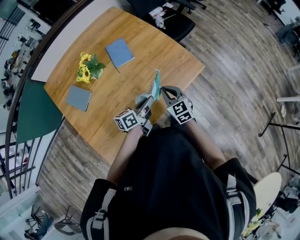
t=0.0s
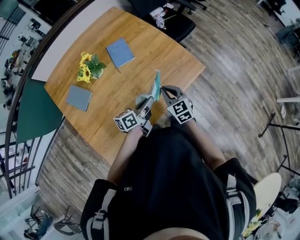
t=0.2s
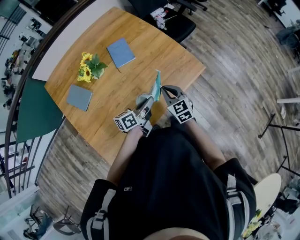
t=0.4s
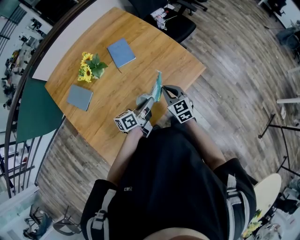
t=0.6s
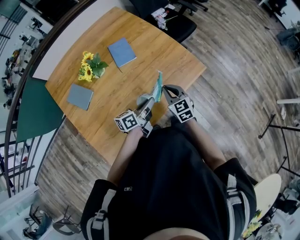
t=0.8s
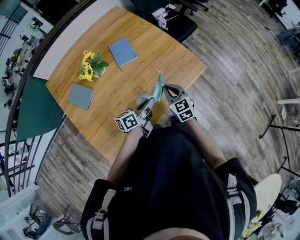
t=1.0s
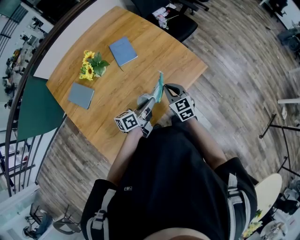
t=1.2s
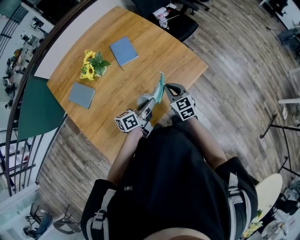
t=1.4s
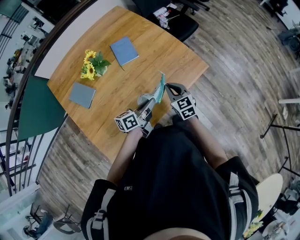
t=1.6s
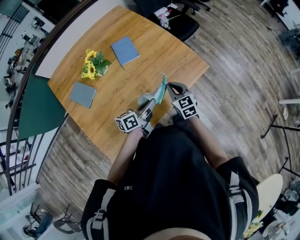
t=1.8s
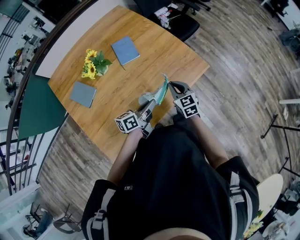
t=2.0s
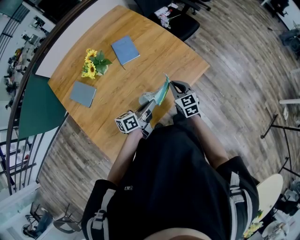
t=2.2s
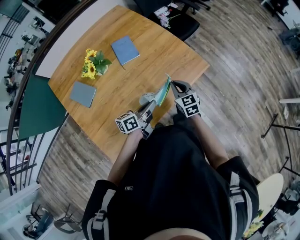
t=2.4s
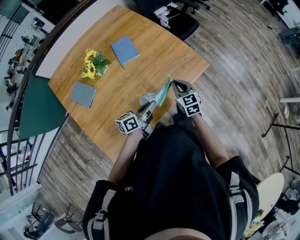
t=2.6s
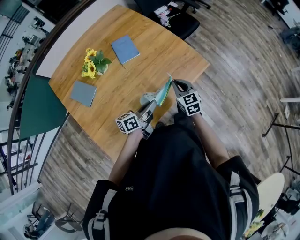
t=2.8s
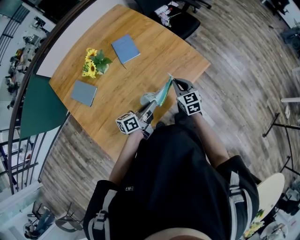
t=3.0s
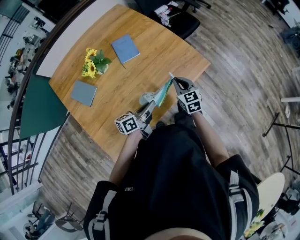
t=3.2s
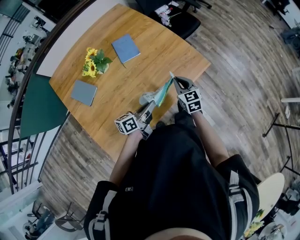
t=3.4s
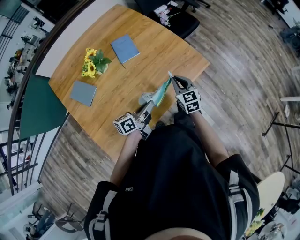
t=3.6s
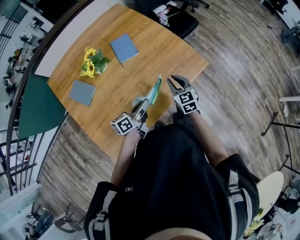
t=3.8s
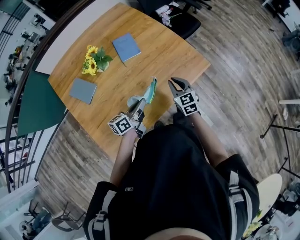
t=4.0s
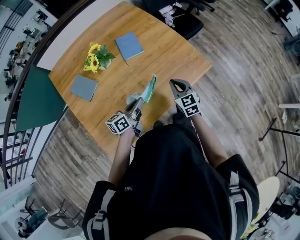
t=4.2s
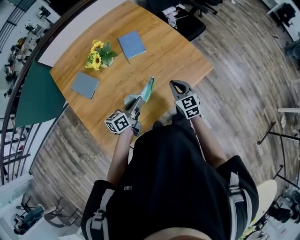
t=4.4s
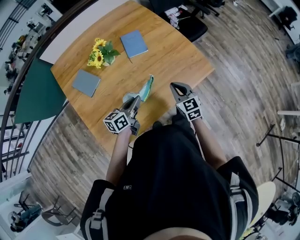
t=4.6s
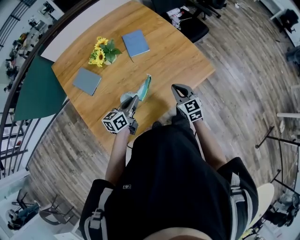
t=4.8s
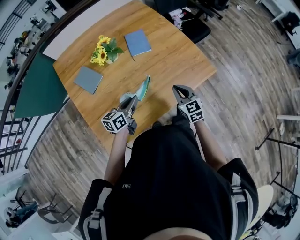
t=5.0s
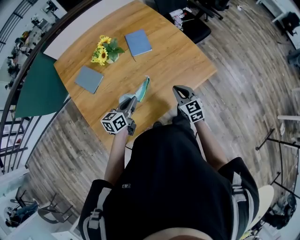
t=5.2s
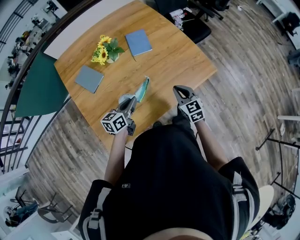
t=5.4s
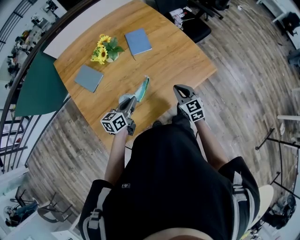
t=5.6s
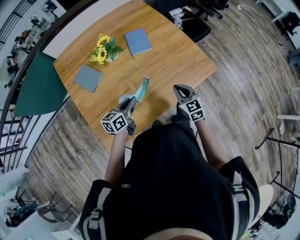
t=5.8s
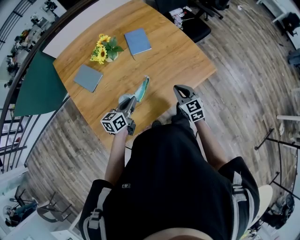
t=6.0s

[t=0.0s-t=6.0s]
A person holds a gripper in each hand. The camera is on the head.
t=0.0s to t=3.0s: The grippers make only small movements.
t=3.0s to t=4.4s: The right gripper moves roughly 5 cm; the left gripper moves to the left, approximately 10 cm.
t=4.4s to t=6.0s: The left gripper changes place by roughly 5 cm.

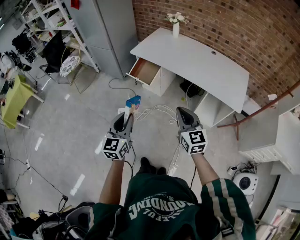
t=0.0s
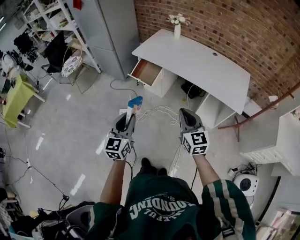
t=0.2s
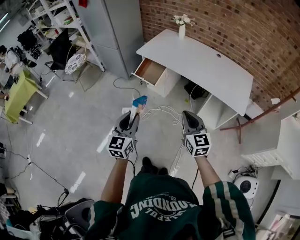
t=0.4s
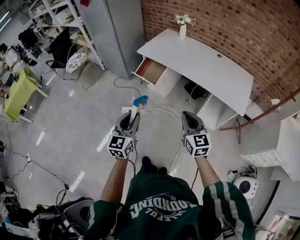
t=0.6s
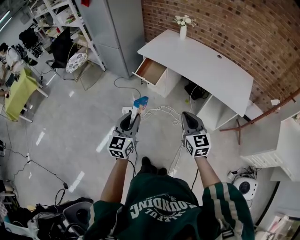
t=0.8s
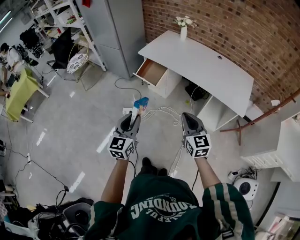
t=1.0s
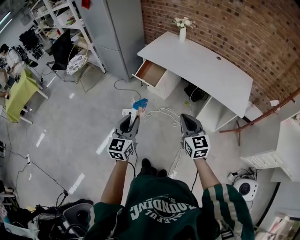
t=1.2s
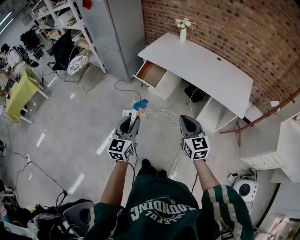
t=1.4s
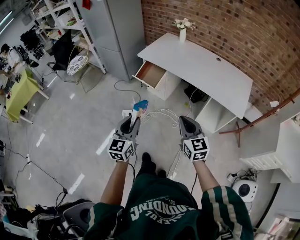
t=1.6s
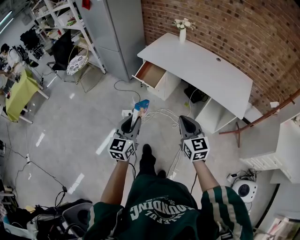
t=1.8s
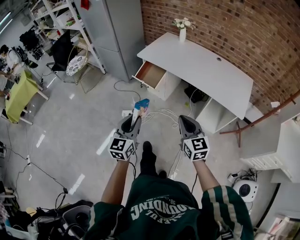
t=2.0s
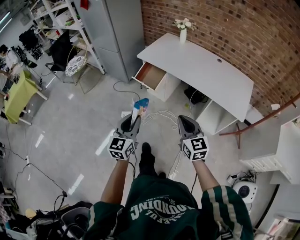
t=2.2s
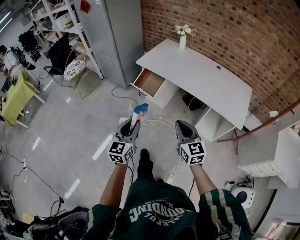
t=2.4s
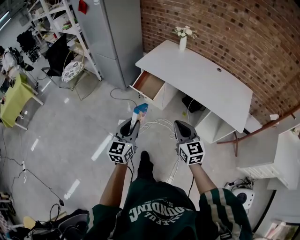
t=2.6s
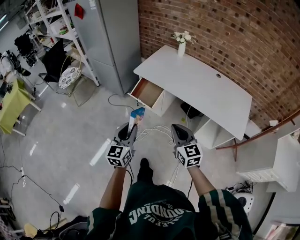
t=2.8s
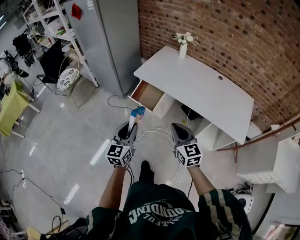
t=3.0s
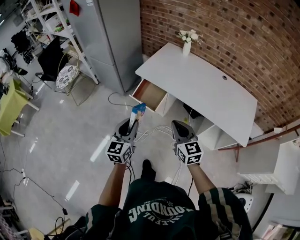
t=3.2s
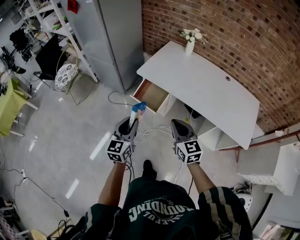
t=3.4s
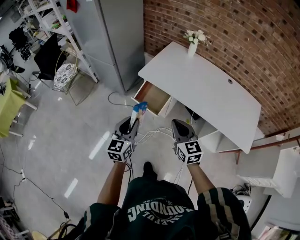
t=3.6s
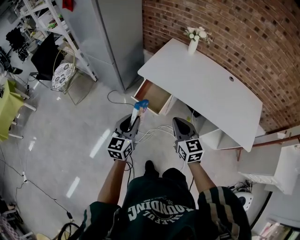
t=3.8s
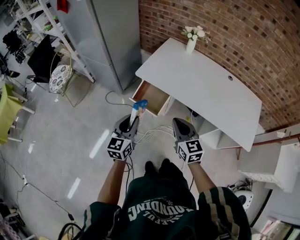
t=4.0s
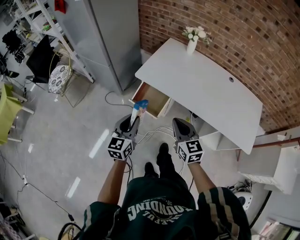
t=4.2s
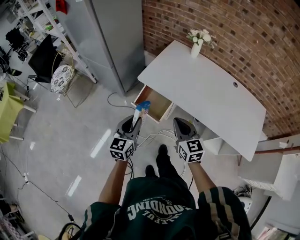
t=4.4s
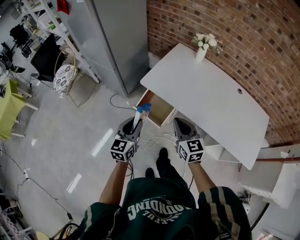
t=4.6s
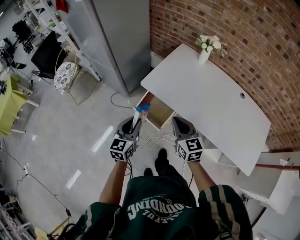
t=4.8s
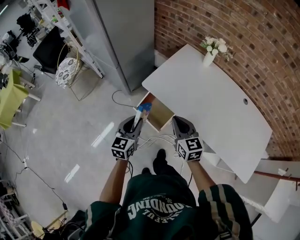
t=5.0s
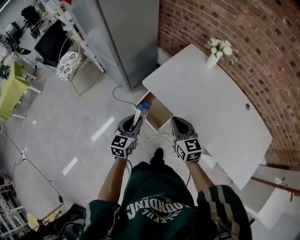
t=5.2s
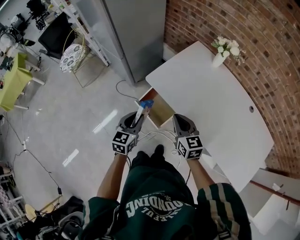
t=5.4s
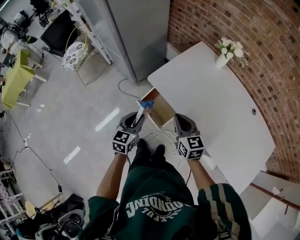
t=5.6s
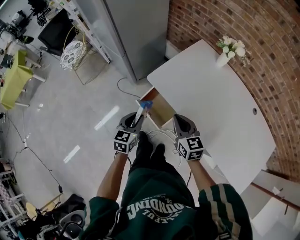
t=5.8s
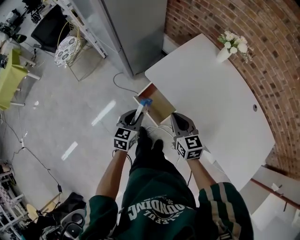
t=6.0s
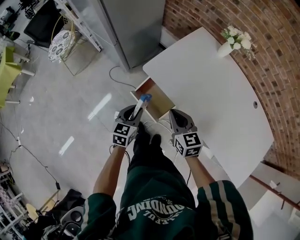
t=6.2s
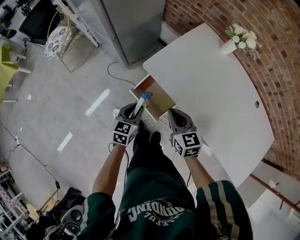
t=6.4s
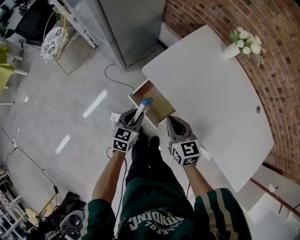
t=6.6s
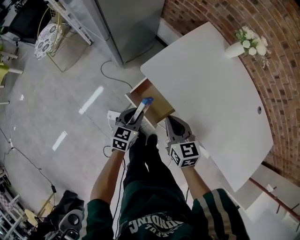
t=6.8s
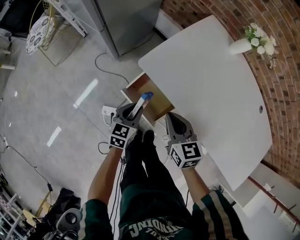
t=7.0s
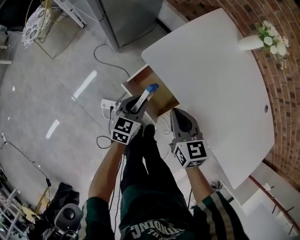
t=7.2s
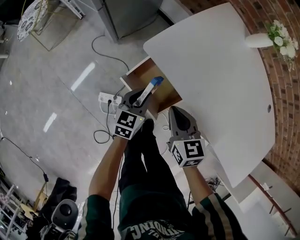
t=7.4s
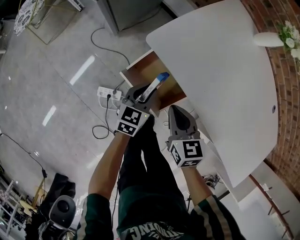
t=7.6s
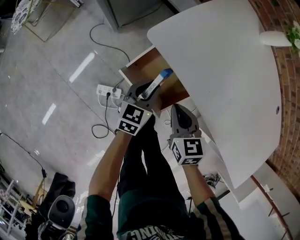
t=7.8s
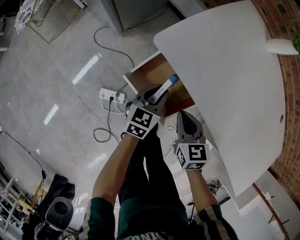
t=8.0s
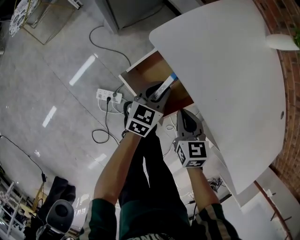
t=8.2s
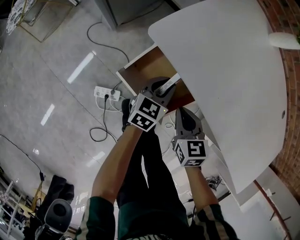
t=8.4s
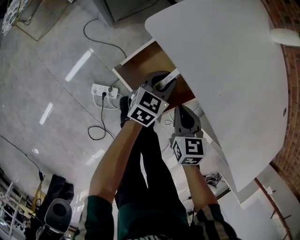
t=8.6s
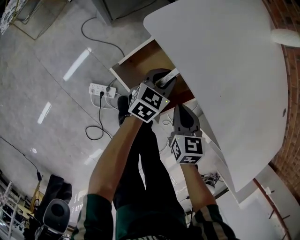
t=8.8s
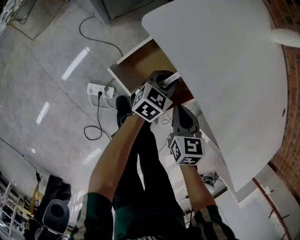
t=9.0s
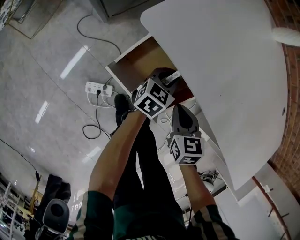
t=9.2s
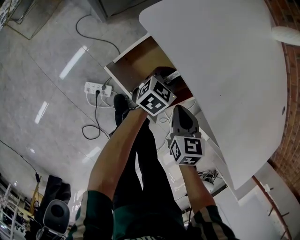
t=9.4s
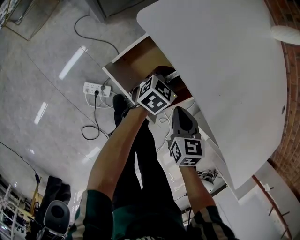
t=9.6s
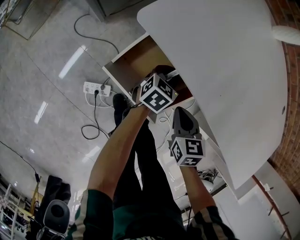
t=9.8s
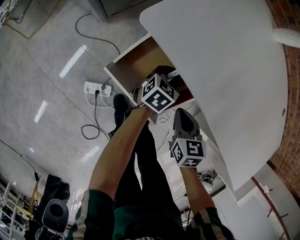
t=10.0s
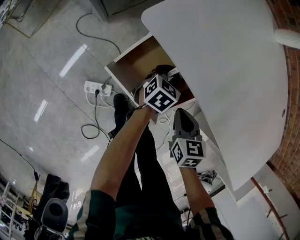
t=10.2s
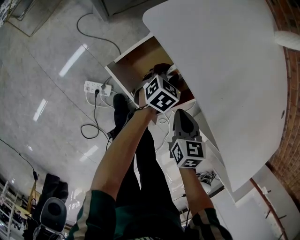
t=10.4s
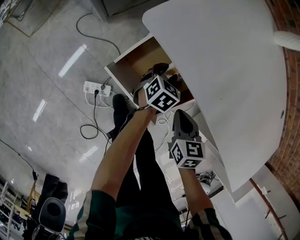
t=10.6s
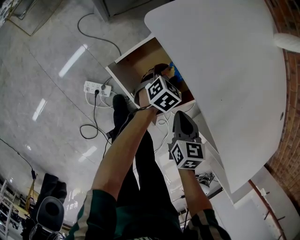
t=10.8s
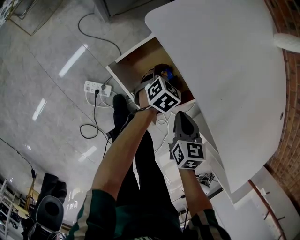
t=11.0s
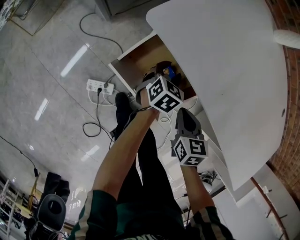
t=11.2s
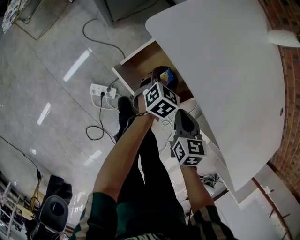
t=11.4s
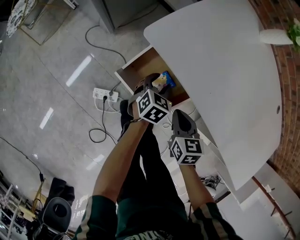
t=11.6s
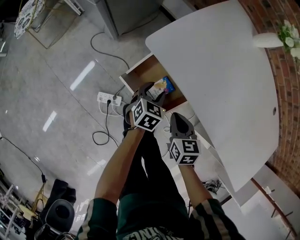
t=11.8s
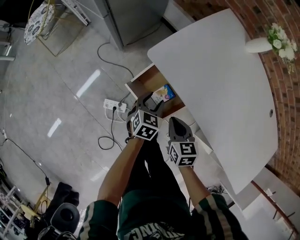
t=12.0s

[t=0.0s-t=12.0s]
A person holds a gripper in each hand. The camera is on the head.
t=0.0s to t=1.6s: The grippers stay close to where they were, moving slightly.
t=1.6s to t=3.0s: The two grippers go approximately 20 cm forward.
t=3.0s to t=4.4s: The grippers both shift forward by roughly 20 cm.
t=4.4s to t=6.0s: The right gripper goes approximately 15 cm forward and downward; the left gripper travels downward and forward by about 20 cm, and changes its angle by approximately 20 degrees.
t=6.0s to t=7.6s: The left gripper shifts approximately 20 cm downward and forward, while the right gripper travels downward by approximately 20 cm.
t=7.6s to t=9.0s: The right gripper shifts roughly 15 cm downward. Meanwhile the left gripper is displaced downward, to the right and forward by some 15 cm.
t=9.0s to t=10.4s: The left gripper goes approximately 5 cm downward.
t=10.4s to t=12.0s: The left gripper heads upward, to the left and backward, covering roughly 20 cm. Meanwhile the right gripper moves upward and to the left, about 10 cm.

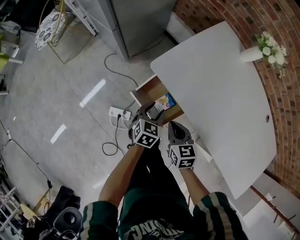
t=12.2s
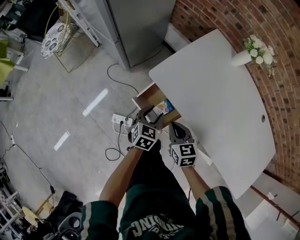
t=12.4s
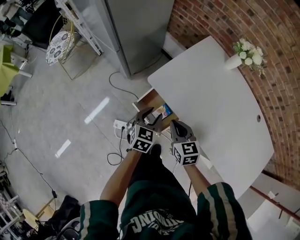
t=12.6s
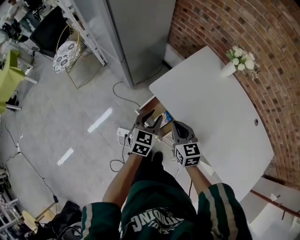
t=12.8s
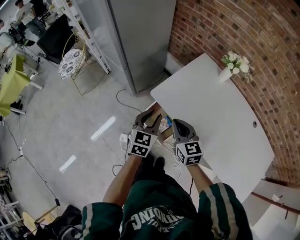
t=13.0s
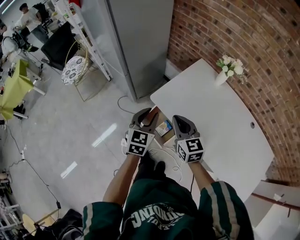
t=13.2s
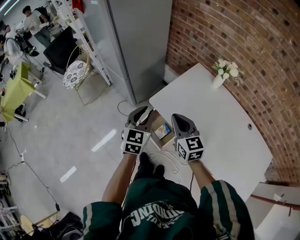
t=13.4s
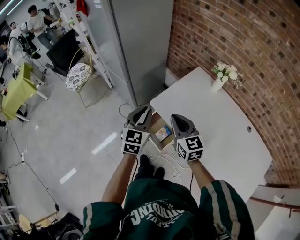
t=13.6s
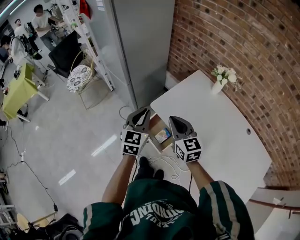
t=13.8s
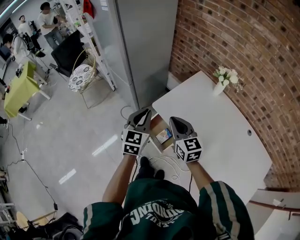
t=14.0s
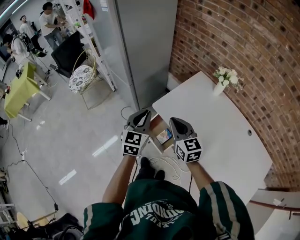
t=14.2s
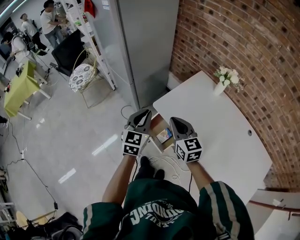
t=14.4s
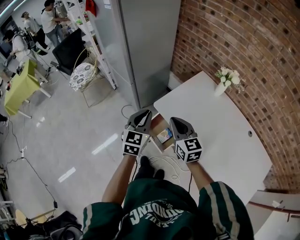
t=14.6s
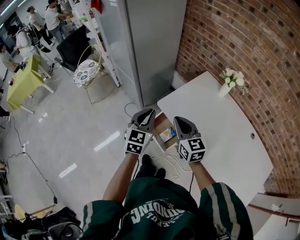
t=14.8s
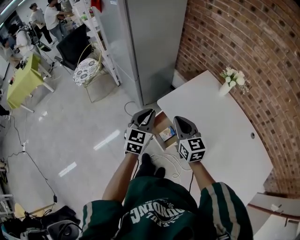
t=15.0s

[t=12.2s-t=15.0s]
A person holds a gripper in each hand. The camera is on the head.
t=12.2s to t=13.6s: The two grippers go approximately 30 cm upward. The left gripper rotates about 30 degrees, and closes its fingers; the right gripper turns by approximately 30 degrees.
t=13.6s to t=15.0s: The grippers make only small movements.

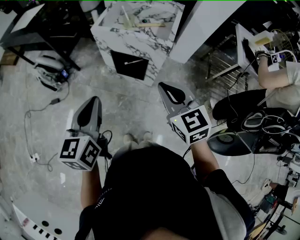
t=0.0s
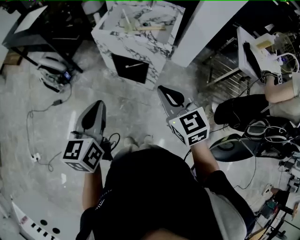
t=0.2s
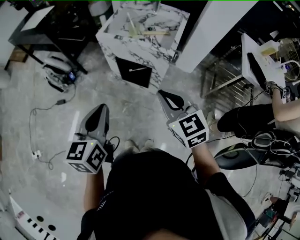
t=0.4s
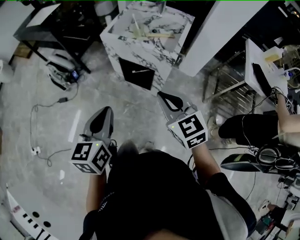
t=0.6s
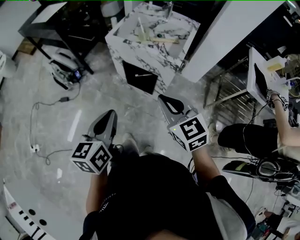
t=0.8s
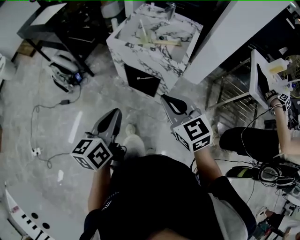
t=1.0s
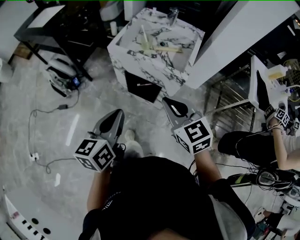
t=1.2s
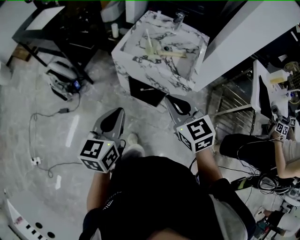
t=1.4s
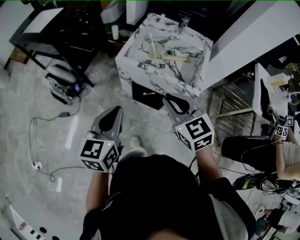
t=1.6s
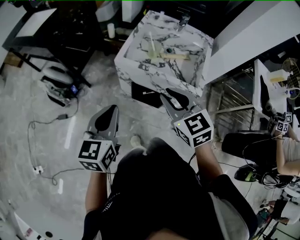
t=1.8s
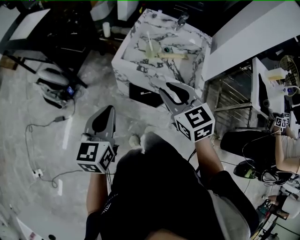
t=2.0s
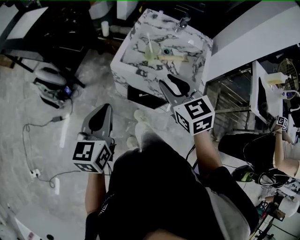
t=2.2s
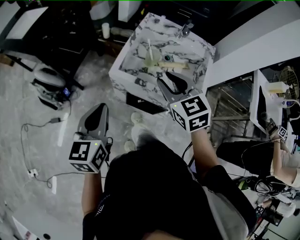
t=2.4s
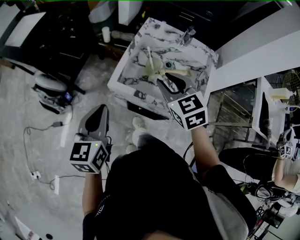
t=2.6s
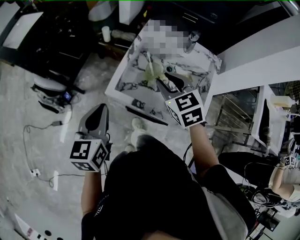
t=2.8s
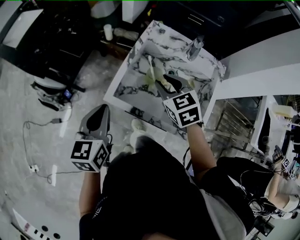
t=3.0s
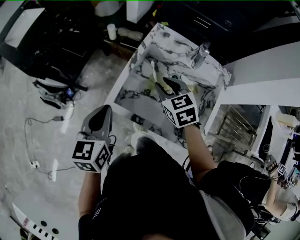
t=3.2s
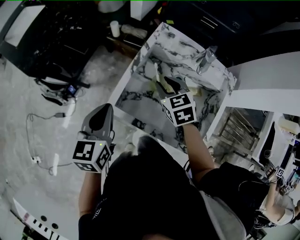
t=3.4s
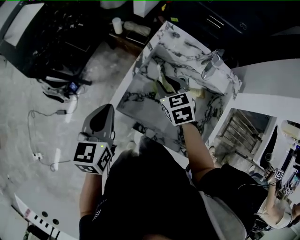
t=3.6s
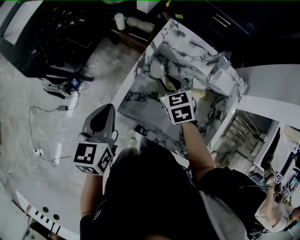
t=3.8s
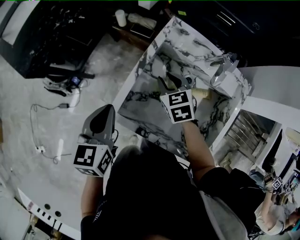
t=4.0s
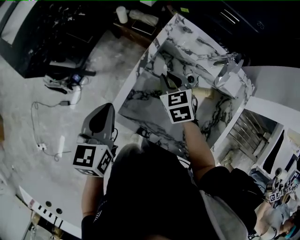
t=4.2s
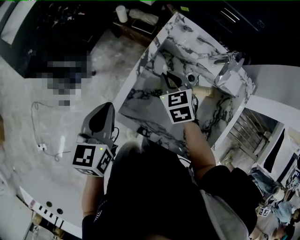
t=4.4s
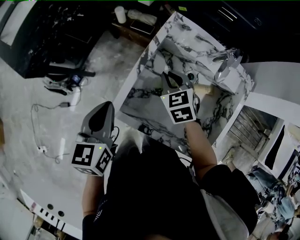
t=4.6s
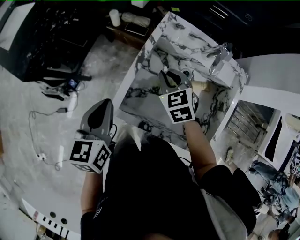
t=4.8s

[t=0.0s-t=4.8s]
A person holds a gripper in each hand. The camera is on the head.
t=0.0s to t=1.6s: The two grippers go about 20 cm forward.
t=1.6s to t=3.2s: The two grippers go approximately 30 cm forward. The right gripper opens.
t=3.2s to t=4.8s: Both grippers move forward, some 5 cm. The right gripper closes.
